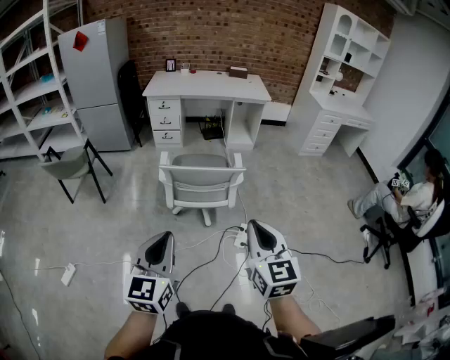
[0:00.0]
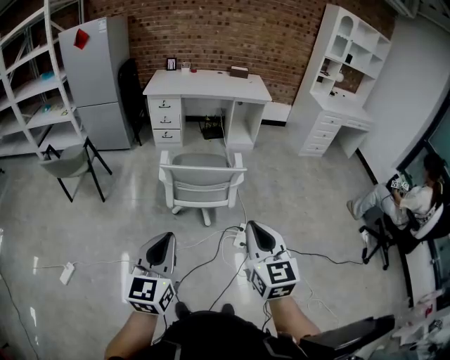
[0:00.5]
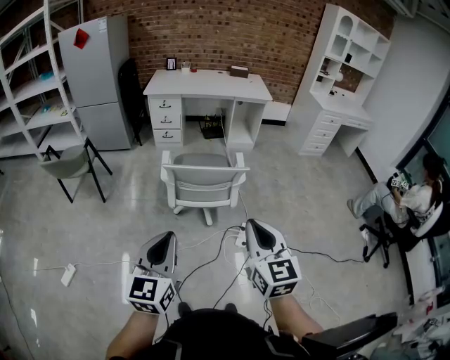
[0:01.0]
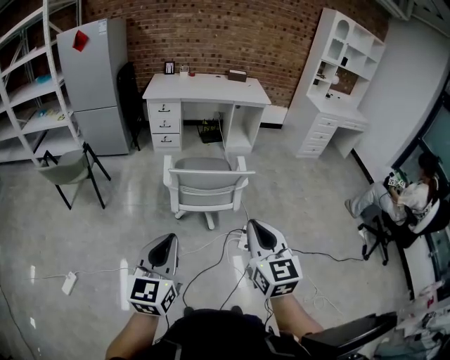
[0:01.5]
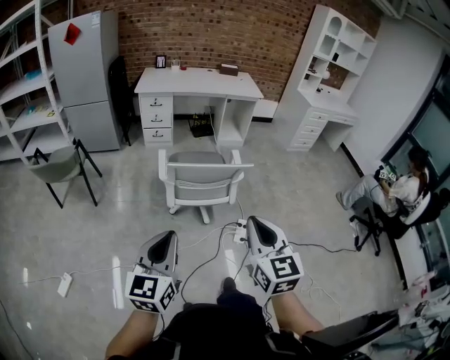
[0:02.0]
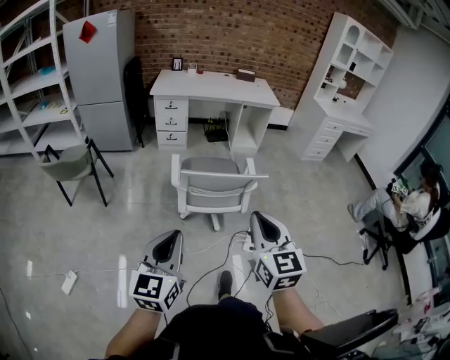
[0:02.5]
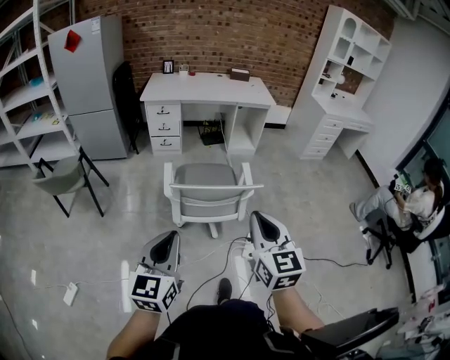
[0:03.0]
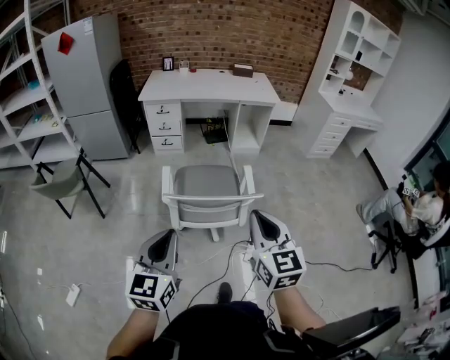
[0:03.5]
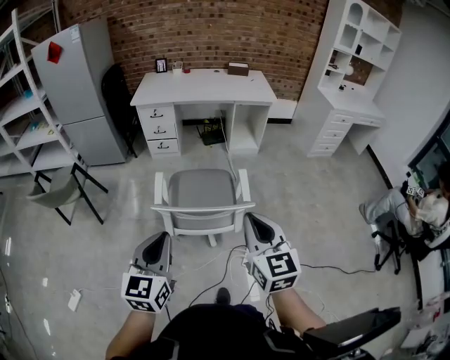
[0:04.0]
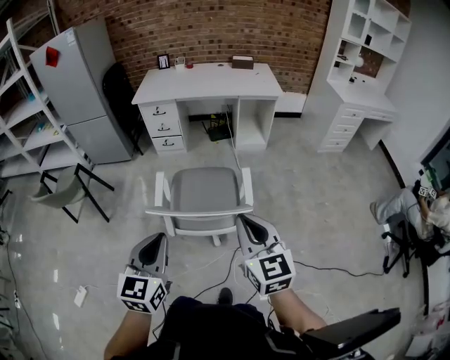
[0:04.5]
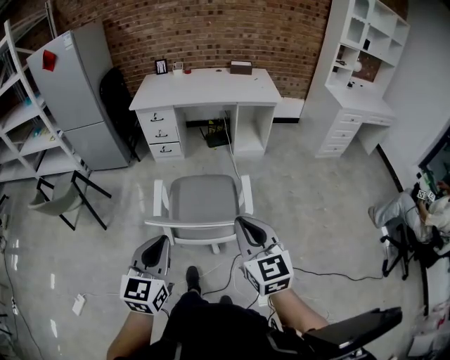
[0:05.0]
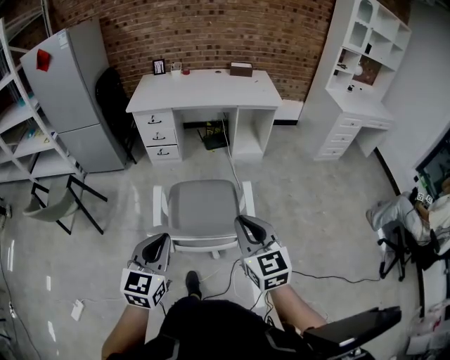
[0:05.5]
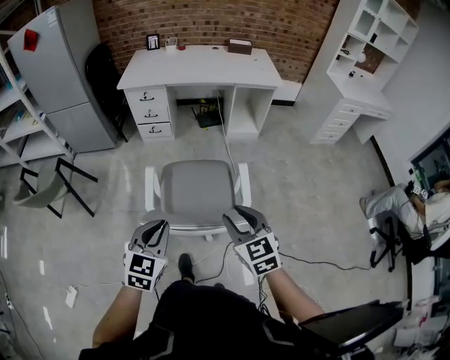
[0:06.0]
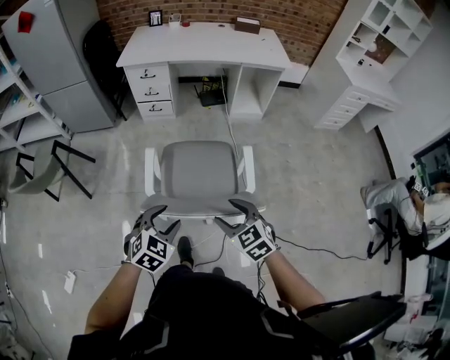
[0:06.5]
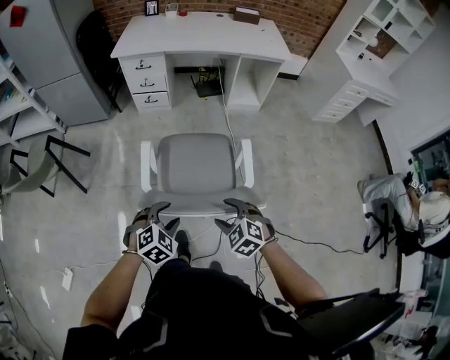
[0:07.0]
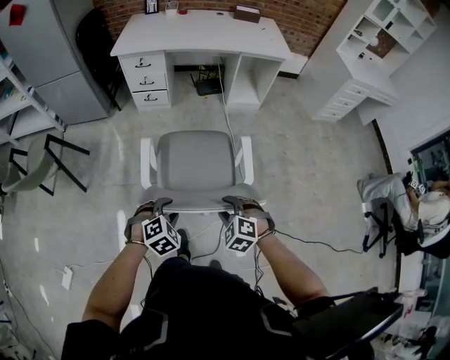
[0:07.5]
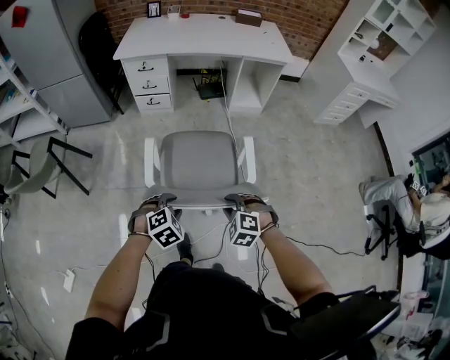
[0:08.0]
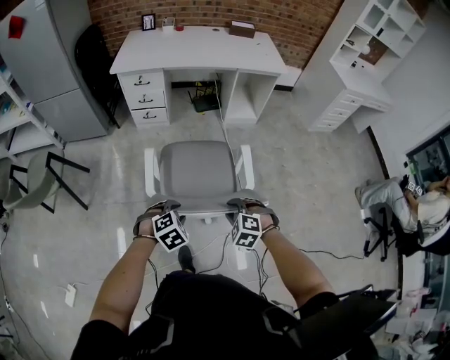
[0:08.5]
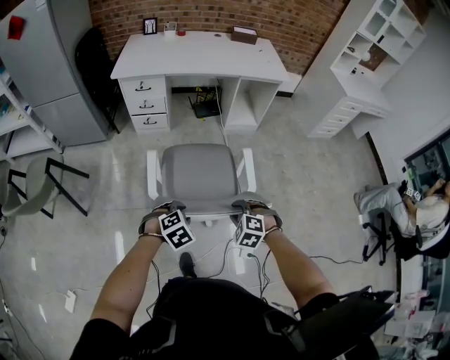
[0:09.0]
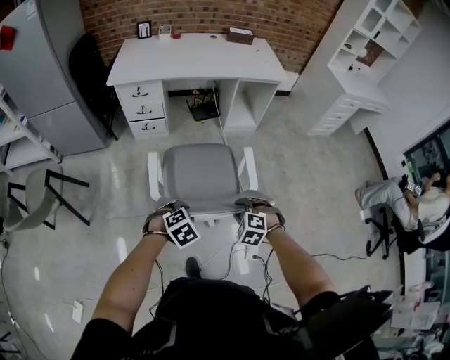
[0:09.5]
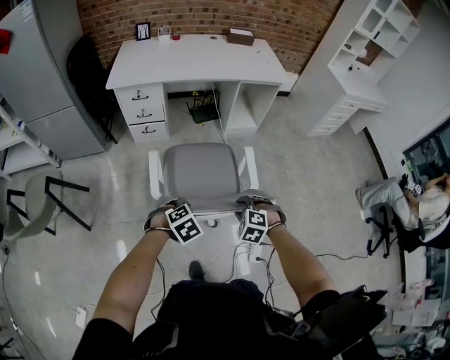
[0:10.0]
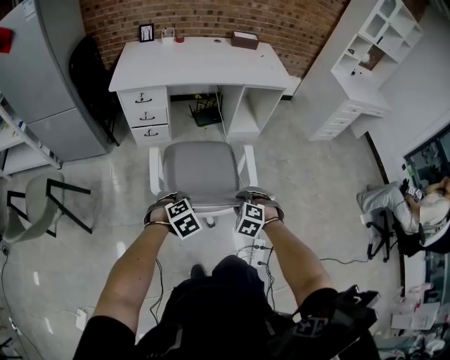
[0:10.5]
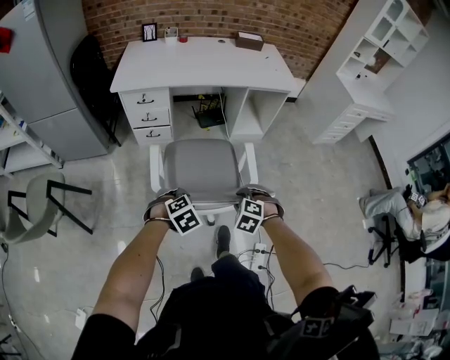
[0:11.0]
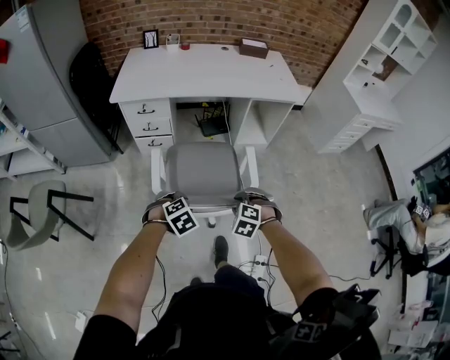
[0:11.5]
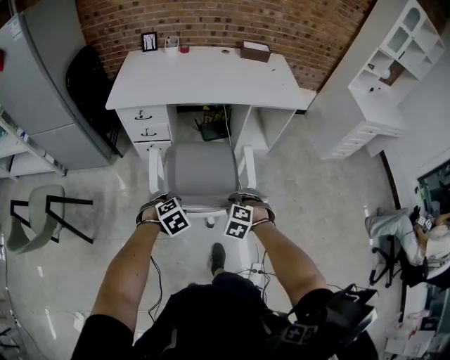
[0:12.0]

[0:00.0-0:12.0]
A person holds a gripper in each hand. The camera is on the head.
0:00.0 to 0:02.0: Both grippers move to the left, some 10 cm.
0:02.0 to 0:04.0: The grippers both shift forward by about 25 cm.
0:04.0 to 0:06.0: The grippers both shift forward and downward by approximately 20 cm. The right gripper swivels roughly 20 degrees, and opens; the left gripper swivels some 20 degrees.
0:06.0 to 0:08.0: The grippers both shift downward by about 20 cm. The right gripper tips its fingers downward by some 30 degrees, and opens and closes again. The left gripper tips its fingers downward by about 40 degrees, and opens.
0:08.0 to 0:10.0: The grippers both shift forward by roughly 10 cm.
0:10.0 to 0:12.0: Both grippers travel together forward, roughly 20 cm.

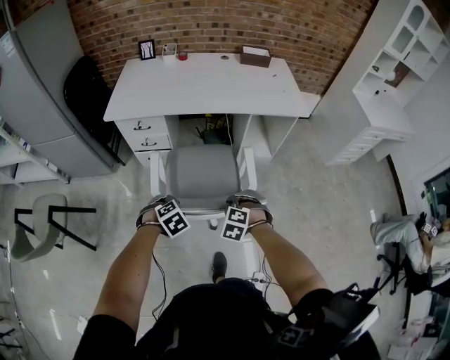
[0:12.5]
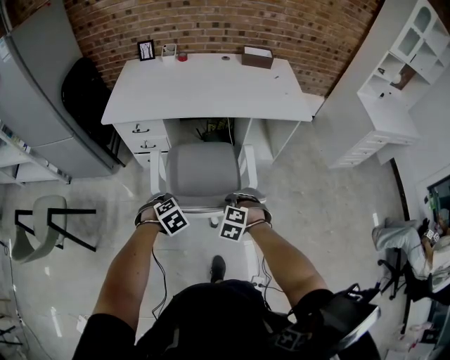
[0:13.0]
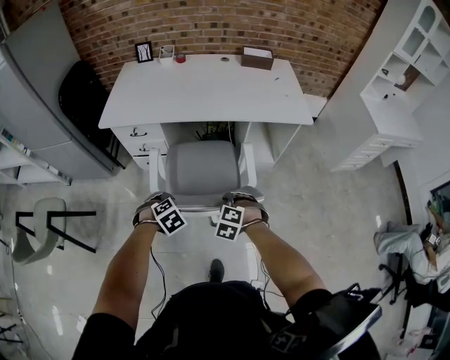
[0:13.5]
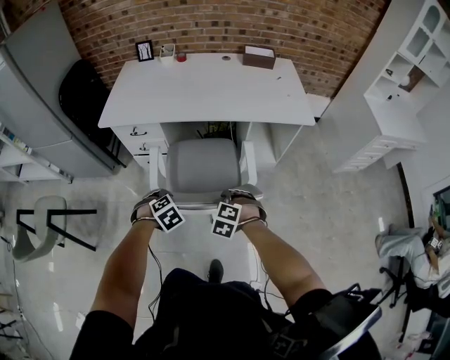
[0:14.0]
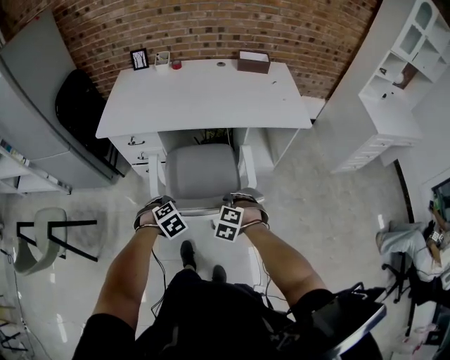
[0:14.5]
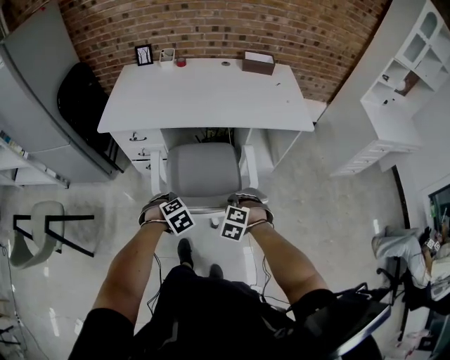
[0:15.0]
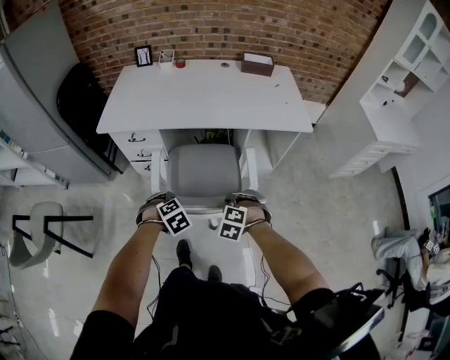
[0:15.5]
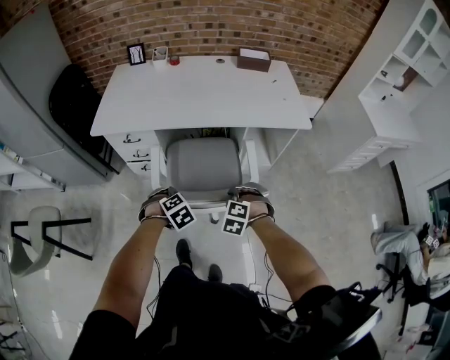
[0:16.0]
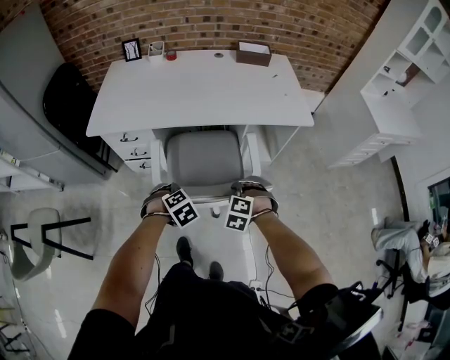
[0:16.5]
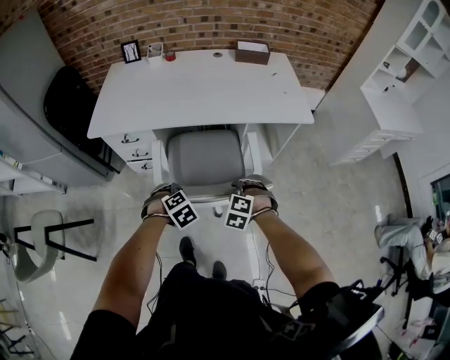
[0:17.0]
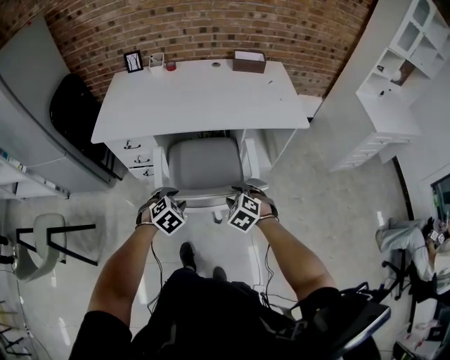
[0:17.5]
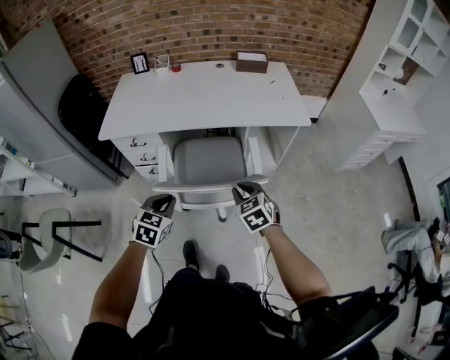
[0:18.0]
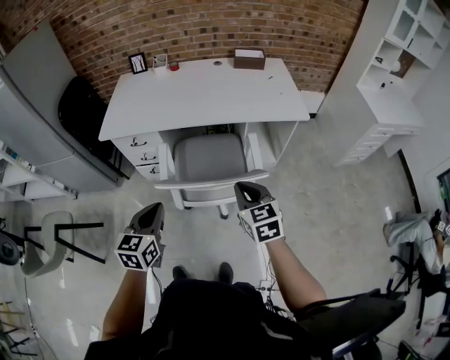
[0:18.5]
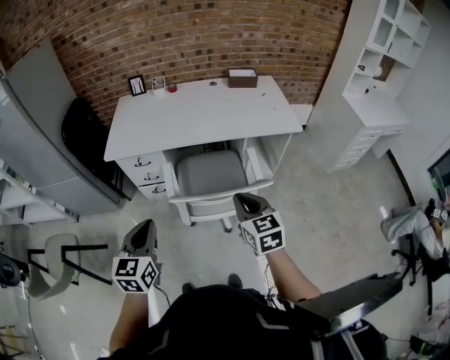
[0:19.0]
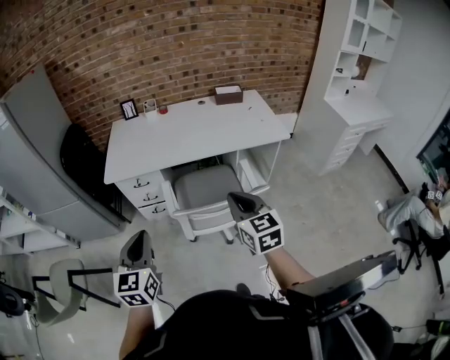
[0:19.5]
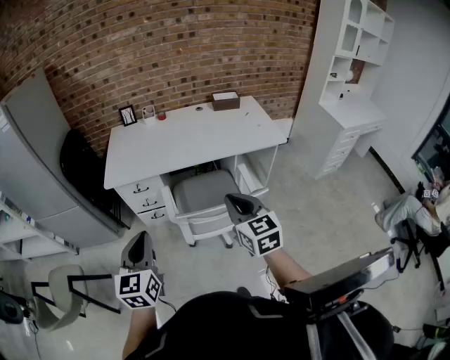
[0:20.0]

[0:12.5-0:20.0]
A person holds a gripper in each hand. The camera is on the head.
0:12.5 to 0:14.5: The left gripper changes place by roughly 10 cm; the right gripper moves some 10 cm.
0:14.5 to 0:16.5: The right gripper ends up approximately 5 cm from where it was, while the left gripper moves roughly 10 cm.
0:16.5 to 0:18.0: The left gripper goes approximately 10 cm upward and backward, points its fingers some 40 degrees further upward, and closes, while the right gripper goes roughly 10 cm upward, and rolls clockwise, seen from behind, by roughly 40 degrees.
0:18.0 to 0:20.0: The left gripper moves upward, to the left and backward, roughly 30 cm, and rotates approximately 30 degrees; the right gripper moves upward and to the left, roughly 25 cm, and rotates some 30 degrees.

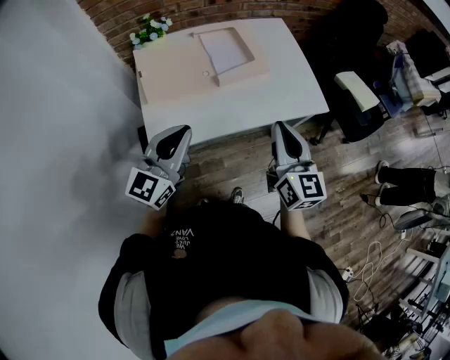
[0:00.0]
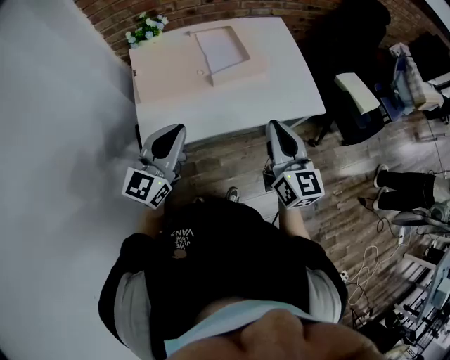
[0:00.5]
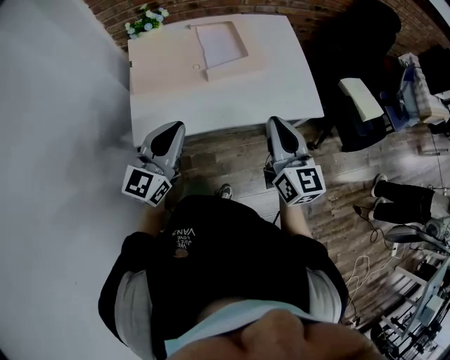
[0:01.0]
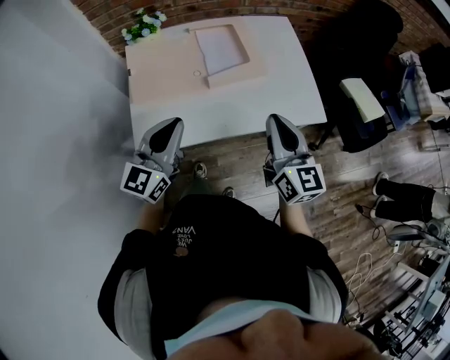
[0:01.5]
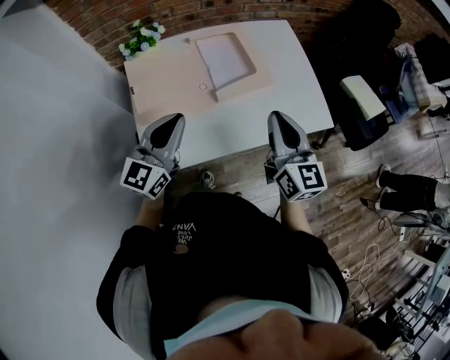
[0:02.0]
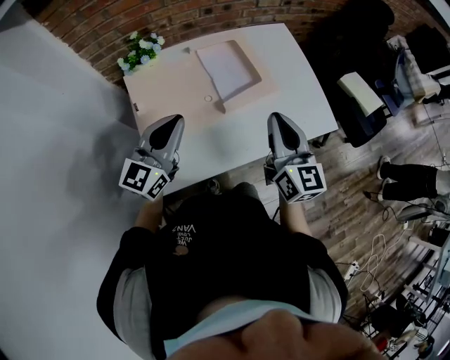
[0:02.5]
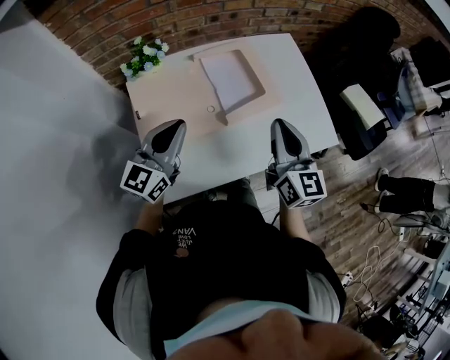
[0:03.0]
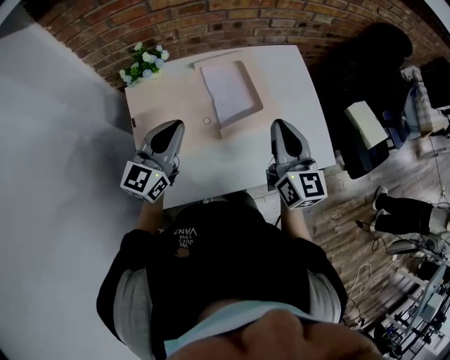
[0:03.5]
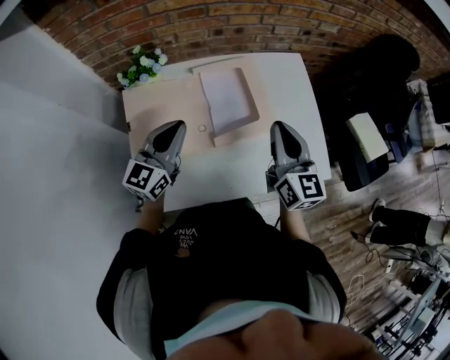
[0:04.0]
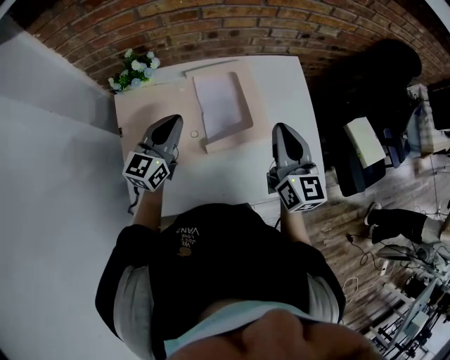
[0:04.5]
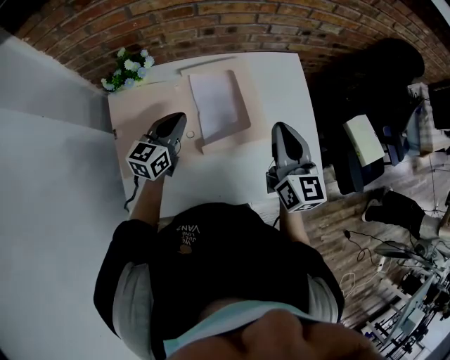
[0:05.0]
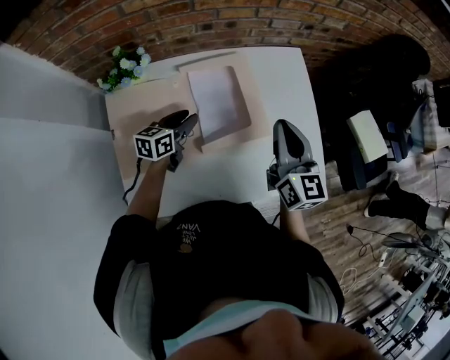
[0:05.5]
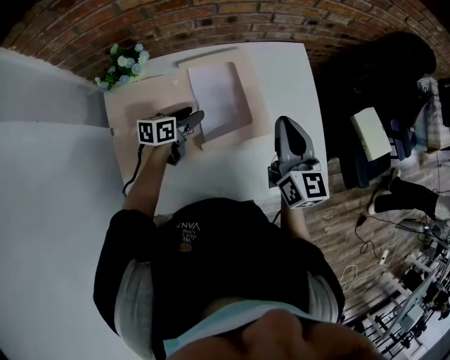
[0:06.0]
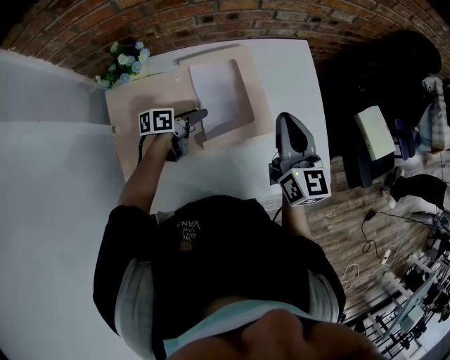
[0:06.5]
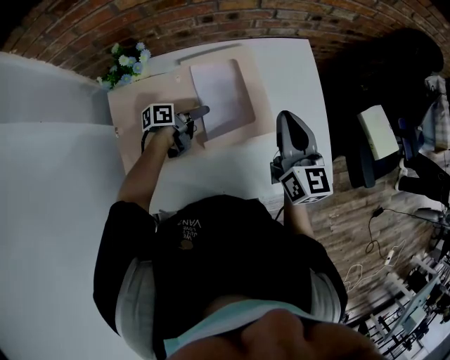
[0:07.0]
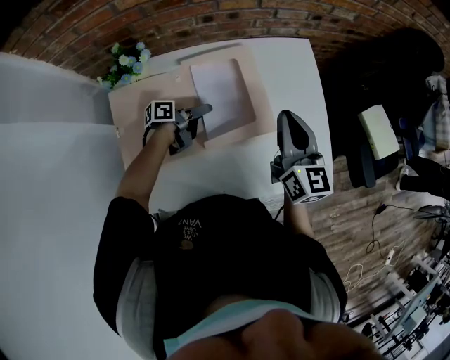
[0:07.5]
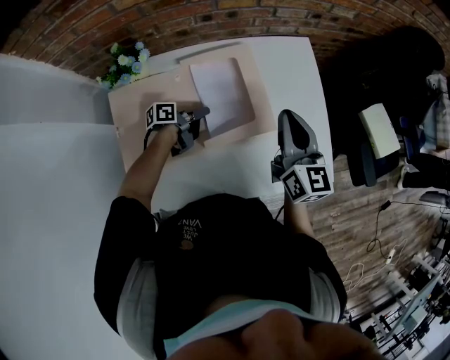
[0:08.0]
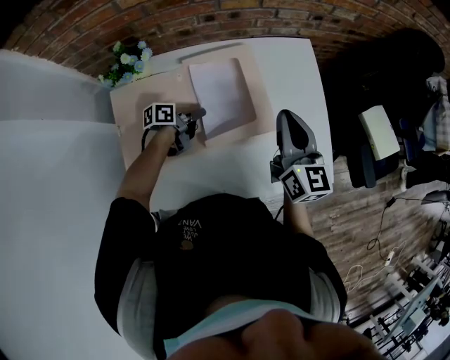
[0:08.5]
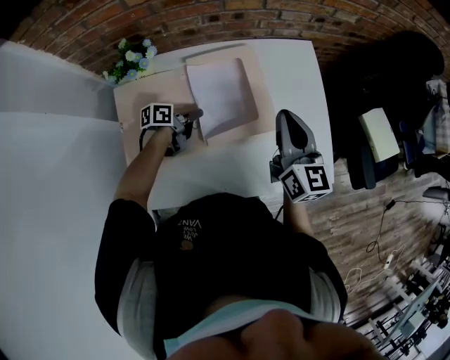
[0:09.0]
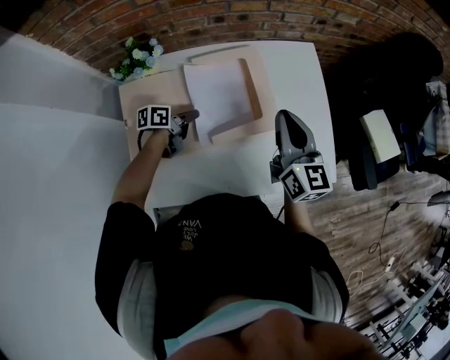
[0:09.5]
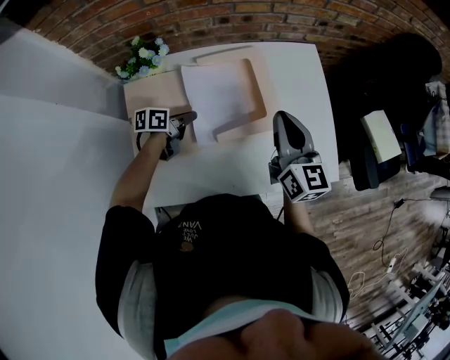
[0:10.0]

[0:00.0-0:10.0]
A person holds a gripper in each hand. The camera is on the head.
0:00.0 to 0:02.0: The two grippers go some 10 cm forward.
0:02.0 to 0:04.0: The two grippers go approximately 15 cm forward.
0:04.0 to 0:06.0: The left gripper moves downward and forward, some 25 cm, changes its angle by approximately 50 degrees, and opens. Meanwhile the right gripper travels forward by some 5 cm.
0:06.0 to 0:08.0: The left gripper turns by approximately 40 degrees, and closes.
0:08.0 to 0:10.0: The right gripper shifts by approximately 5 cm. The left gripper shifts roughly 10 cm to the left and backward, and turns by approximately 20 degrees.
